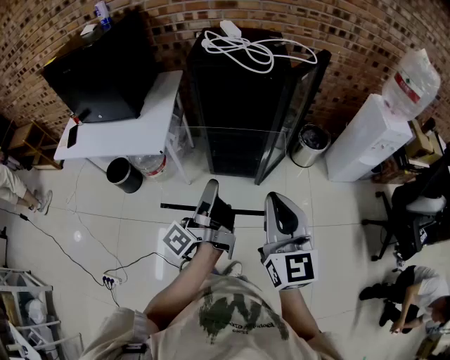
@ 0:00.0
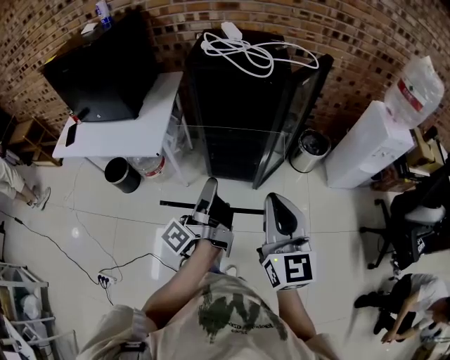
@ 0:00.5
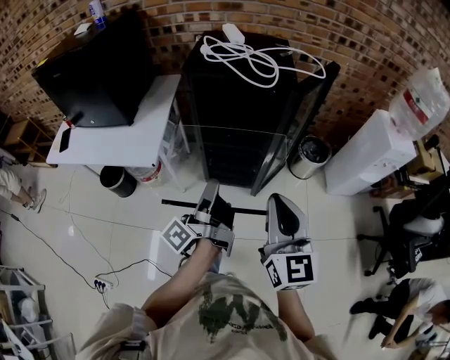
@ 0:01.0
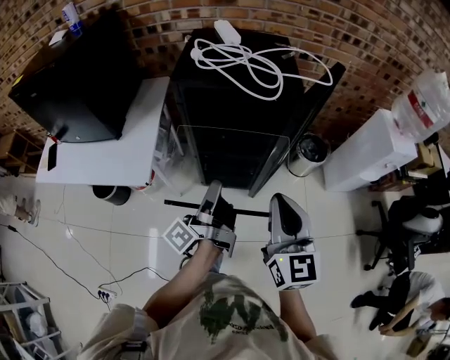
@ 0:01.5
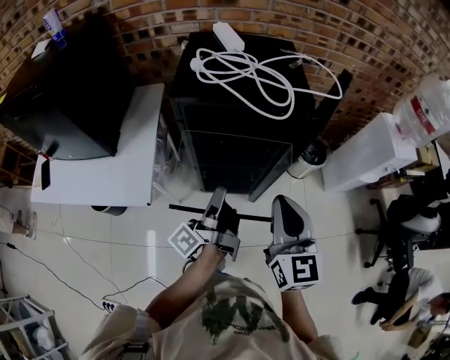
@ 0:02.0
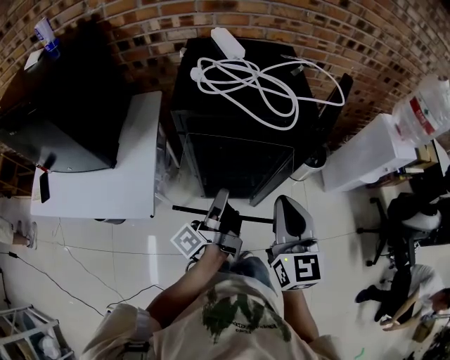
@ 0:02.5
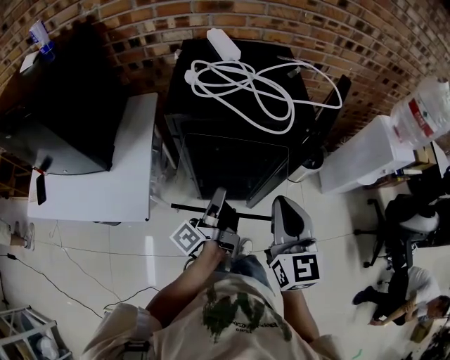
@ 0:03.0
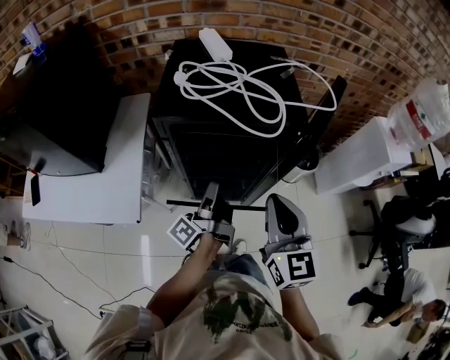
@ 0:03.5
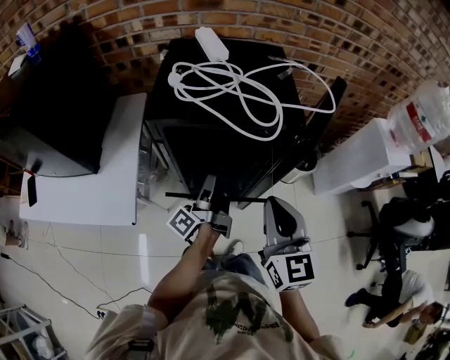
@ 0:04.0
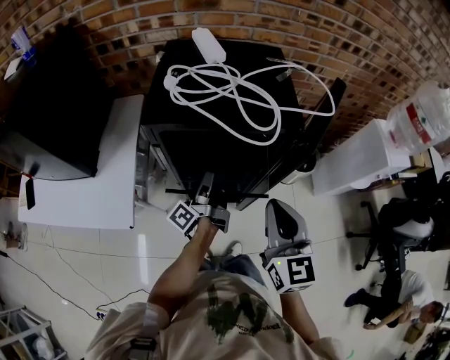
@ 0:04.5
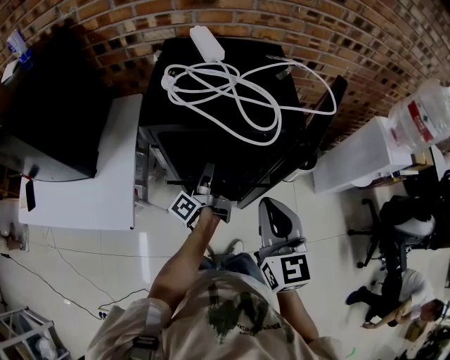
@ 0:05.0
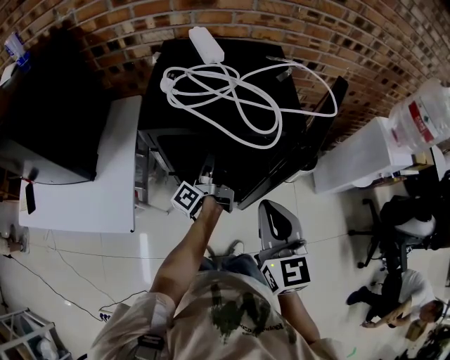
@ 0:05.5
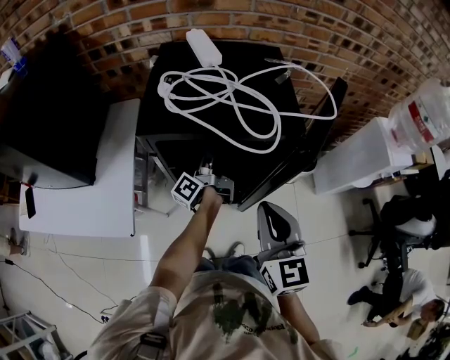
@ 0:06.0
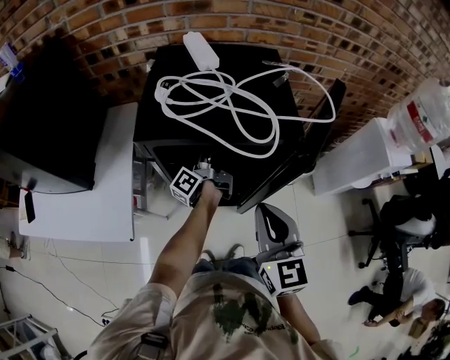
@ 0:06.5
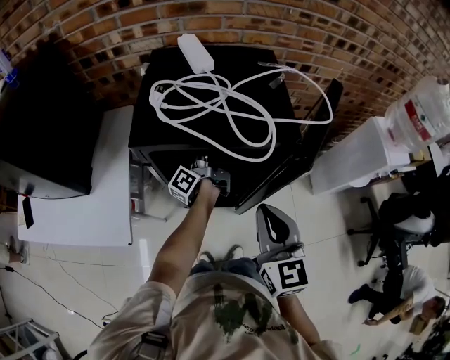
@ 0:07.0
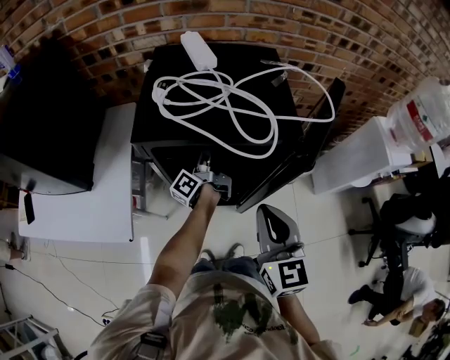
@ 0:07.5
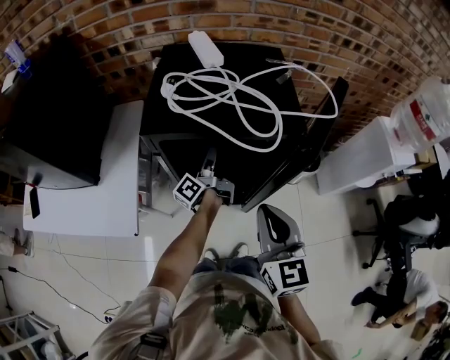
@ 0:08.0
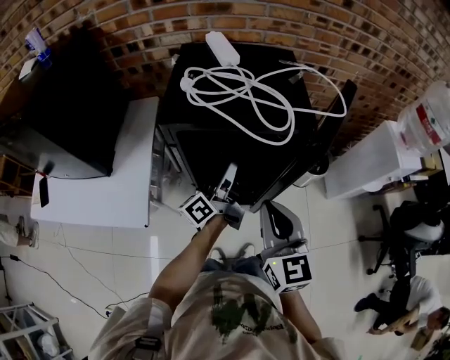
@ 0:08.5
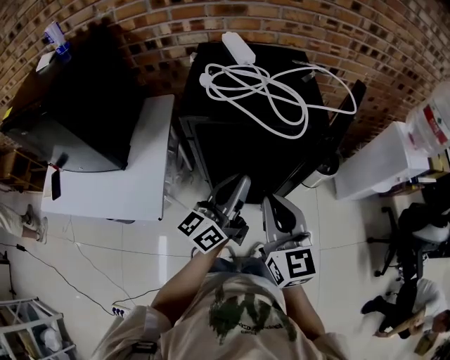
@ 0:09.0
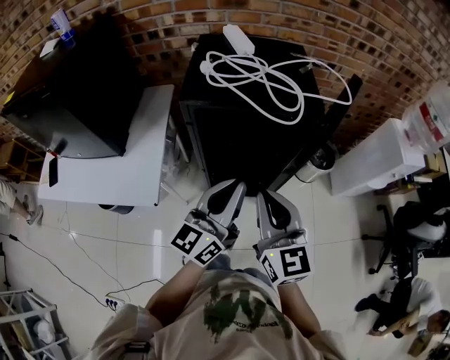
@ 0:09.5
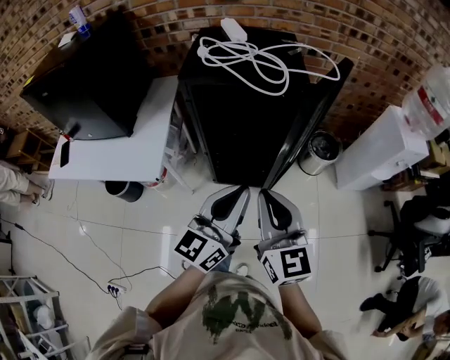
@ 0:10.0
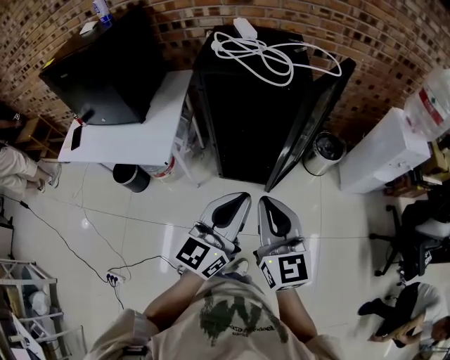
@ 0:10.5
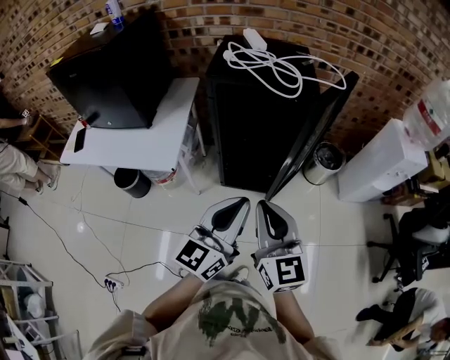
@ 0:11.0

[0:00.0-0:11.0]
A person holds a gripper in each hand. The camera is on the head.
0:00.0 to 0:02.0: The right gripper moves approximately 25 cm.
0:02.0 to 0:03.5: The right gripper shifts by about 5 cm.
0:07.5 to 0:09.0: The right gripper moves approximately 10 cm.
0:09.0 to 0:11.0: The right gripper ends up approximately 20 cm from where it was.

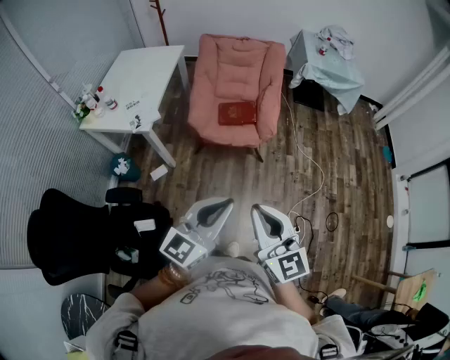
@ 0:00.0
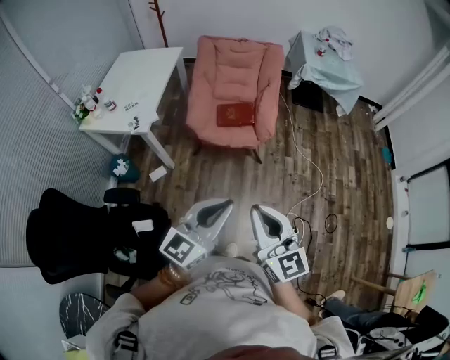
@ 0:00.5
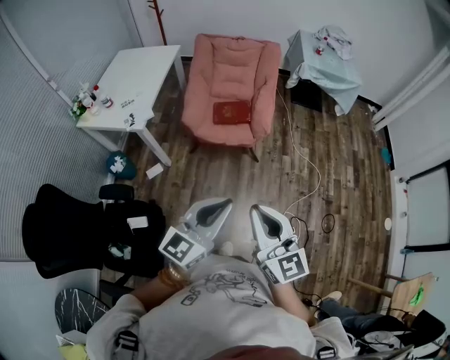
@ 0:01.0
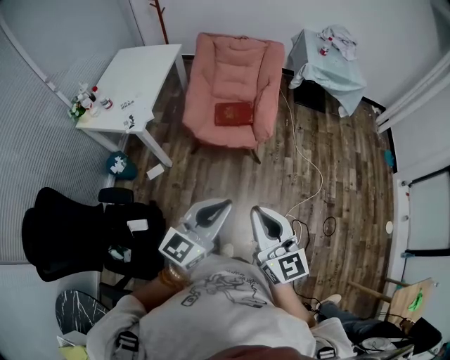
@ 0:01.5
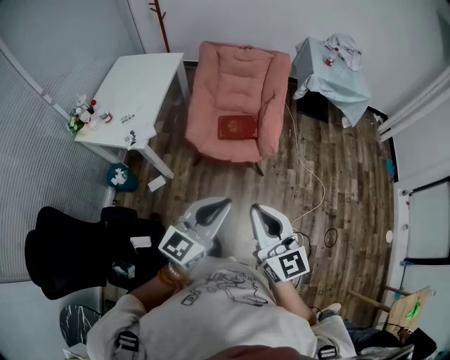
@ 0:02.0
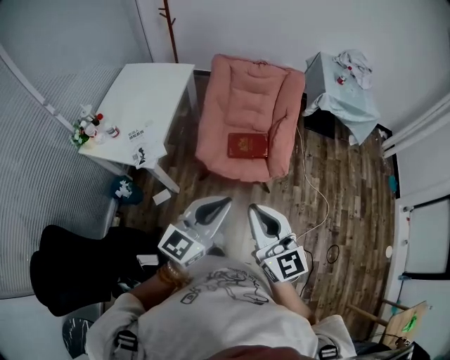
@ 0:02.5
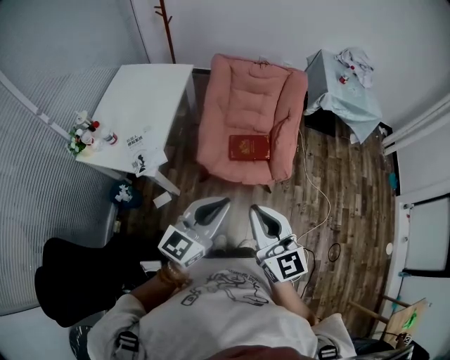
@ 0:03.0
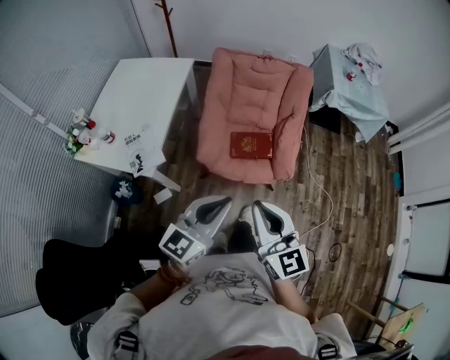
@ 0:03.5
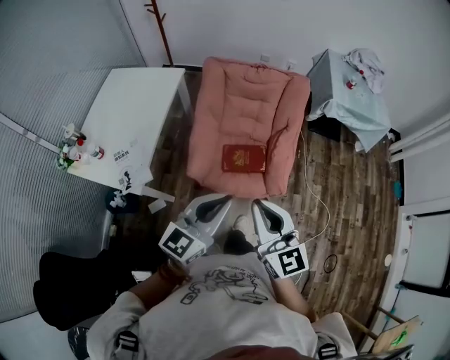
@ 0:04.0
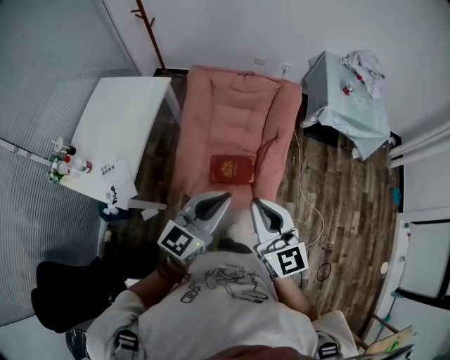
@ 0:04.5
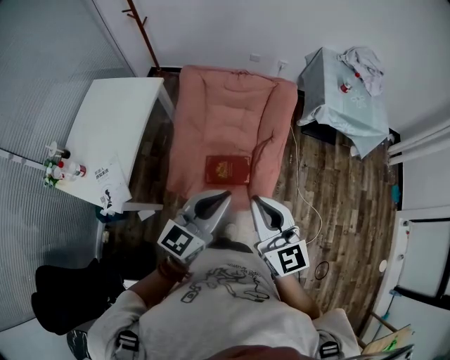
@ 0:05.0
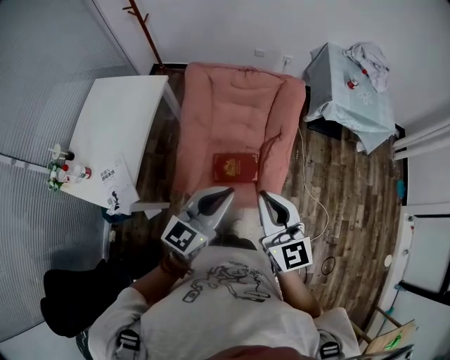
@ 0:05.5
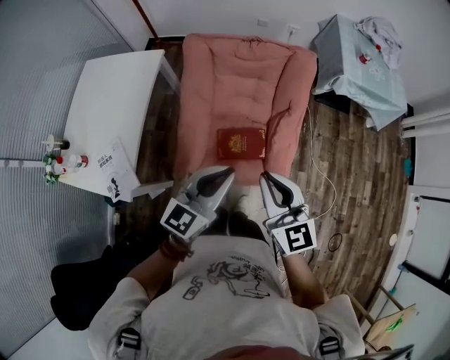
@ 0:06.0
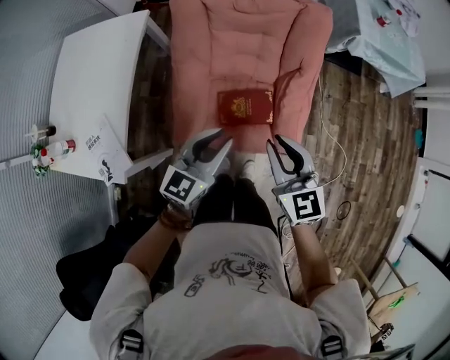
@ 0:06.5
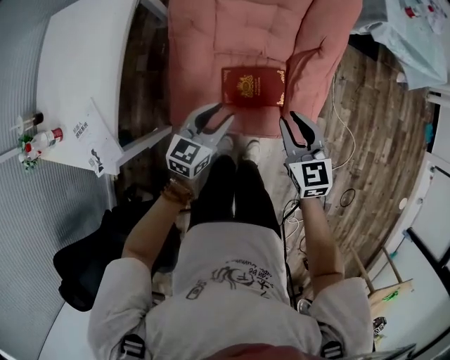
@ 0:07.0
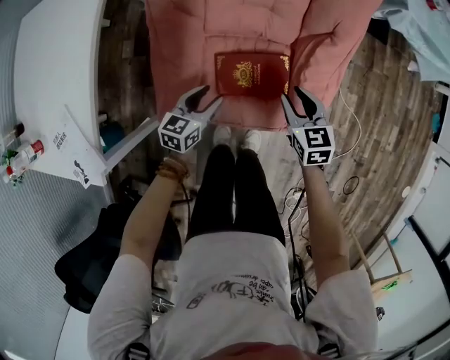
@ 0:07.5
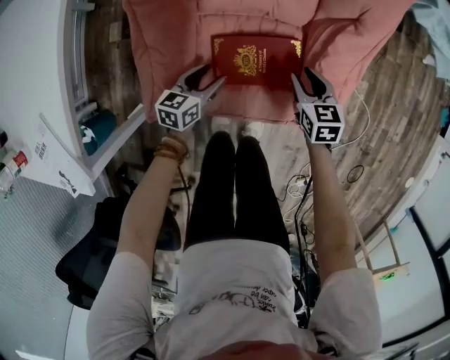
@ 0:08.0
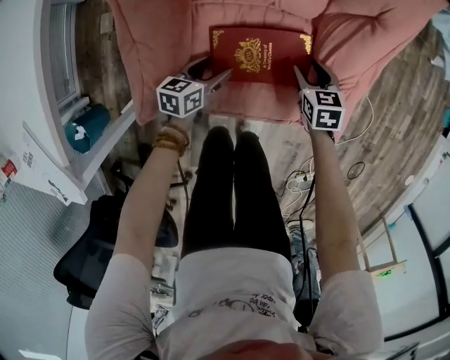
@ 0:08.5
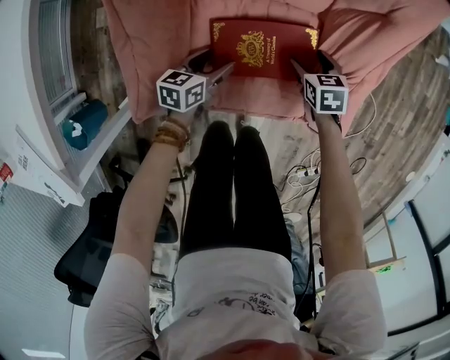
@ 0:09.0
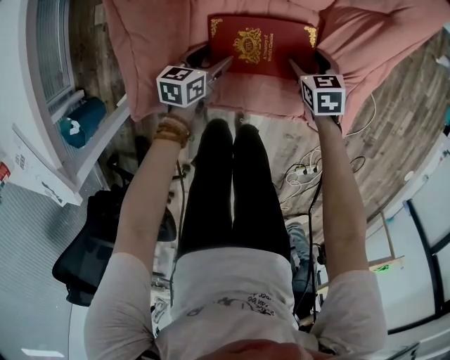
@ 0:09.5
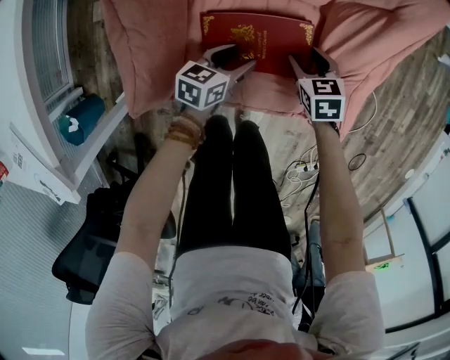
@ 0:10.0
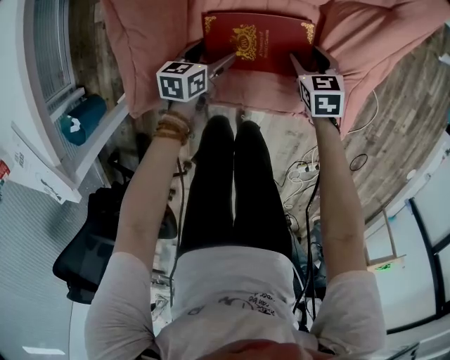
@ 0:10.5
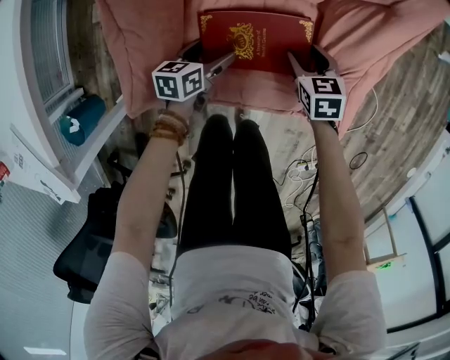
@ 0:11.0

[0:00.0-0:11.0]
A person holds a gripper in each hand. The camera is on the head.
0:00.0 to 0:02.0: The two grippers go roughly 15 cm forward.
0:02.0 to 0:03.5: Both grippers travel together forward and to the left, about 25 cm.
0:03.5 to 0:05.5: Both grippers travel together forward and to the right, approximately 30 cm.
0:05.5 to 0:07.5: The left gripper moves downward, some 50 cm, rotates some 30 degrees, and opens up, while the right gripper shifts approximately 60 cm downward and forward, tilts its fingers some 40 degrees downward, and opens.
0:07.5 to 0:09.0: The two grippers go some 25 cm downward. The right gripper rotates some 20 degrees, and opens its fingers.
0:09.0 to 0:11.0: The grippers stay close to where they were, moving slightly.

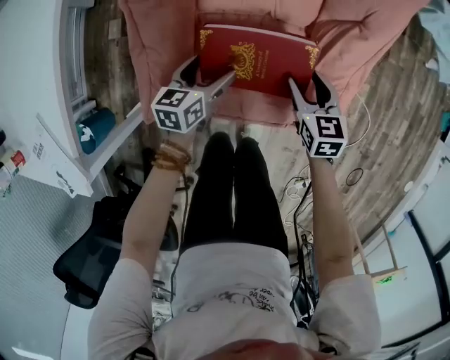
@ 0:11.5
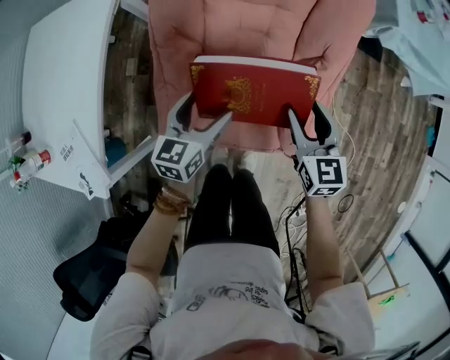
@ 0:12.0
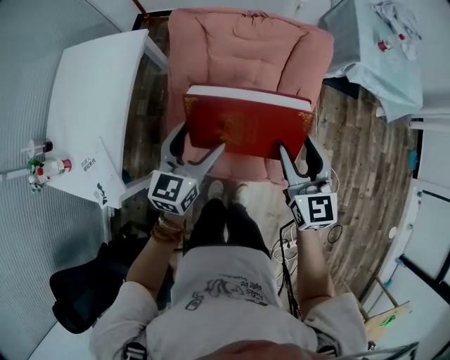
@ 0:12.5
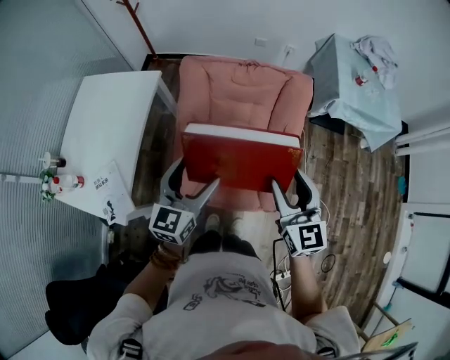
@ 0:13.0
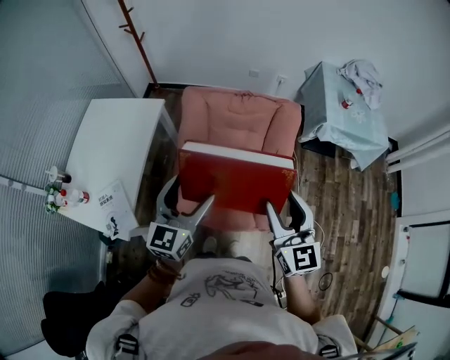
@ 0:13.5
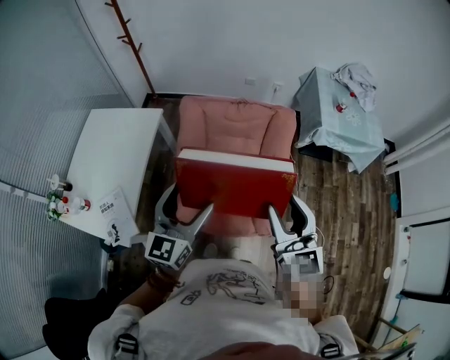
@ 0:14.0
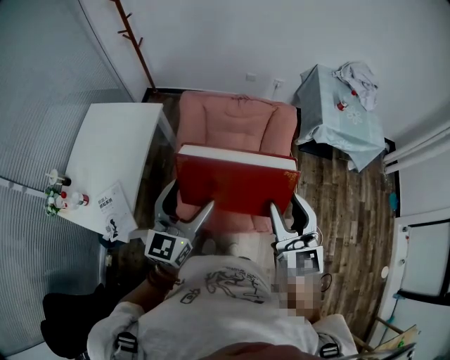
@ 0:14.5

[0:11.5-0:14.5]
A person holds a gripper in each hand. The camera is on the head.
0:11.5 to 0:13.0: The two grippers go approximately 60 cm upward. The right gripper angles its fingers upward, by about 30 degrees. Meanwhile the left gripper swivels about 40 degrees.
0:13.0 to 0:14.5: The two grippers go some 15 cm upward and backward.

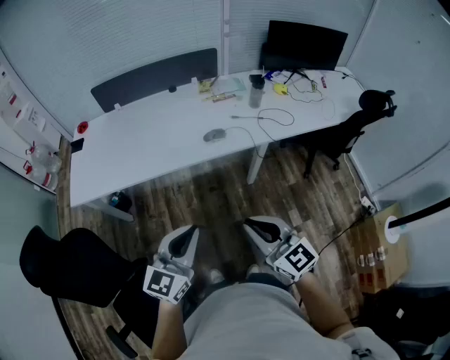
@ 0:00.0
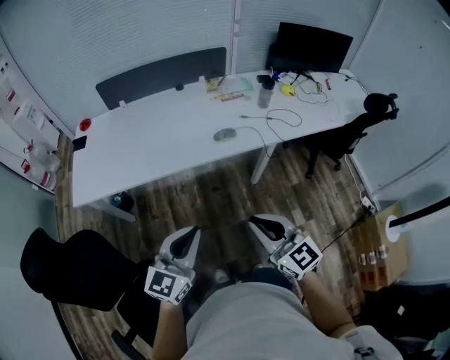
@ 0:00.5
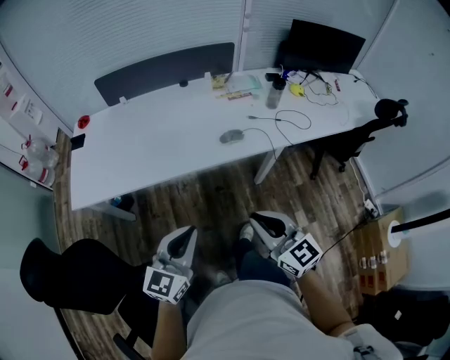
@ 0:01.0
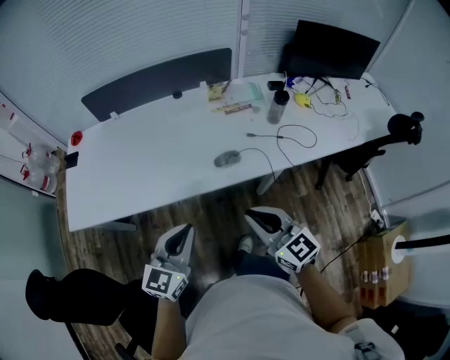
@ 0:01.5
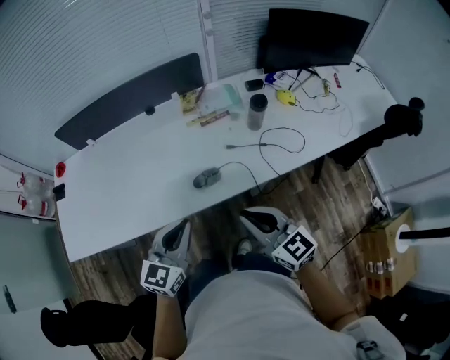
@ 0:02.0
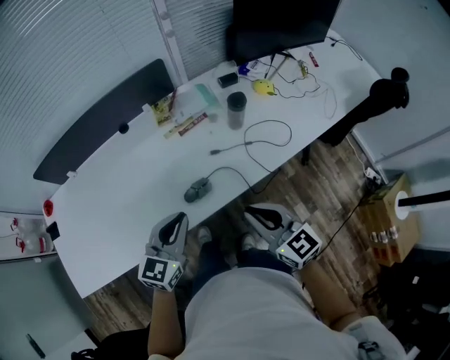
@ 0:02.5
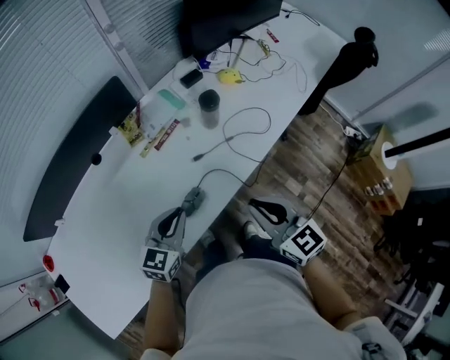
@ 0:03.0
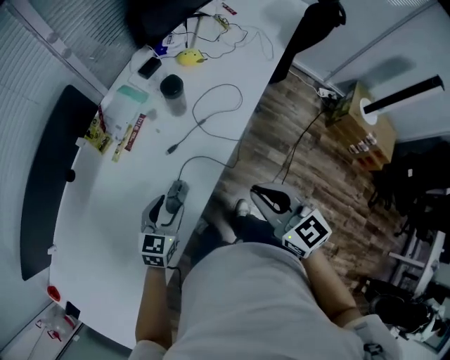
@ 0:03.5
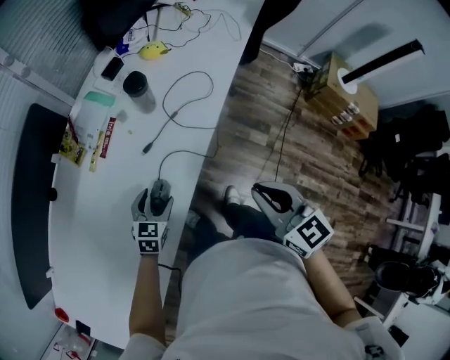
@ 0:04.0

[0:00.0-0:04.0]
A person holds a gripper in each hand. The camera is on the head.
0:00.0 to 0:02.0: Both grippers move forward, some 30 cm.
0:02.0 to 0:04.0: The left gripper shifts some 25 cm downward, turns by about 50 degrees, and opens. The right gripper shifts by approximately 10 cm, and changes its angle by roughly 60 degrees.
